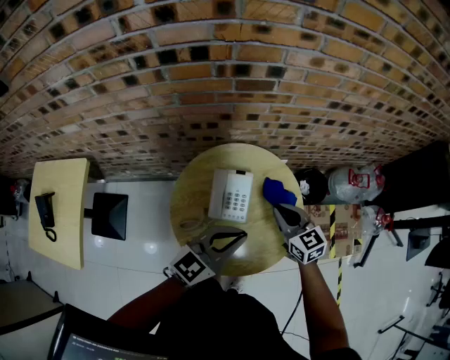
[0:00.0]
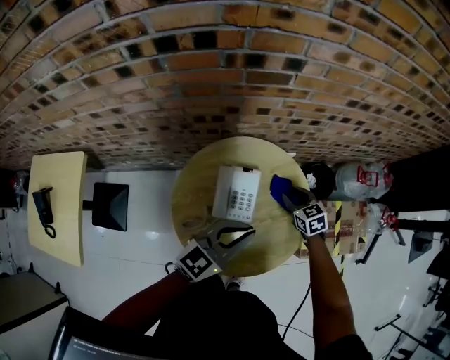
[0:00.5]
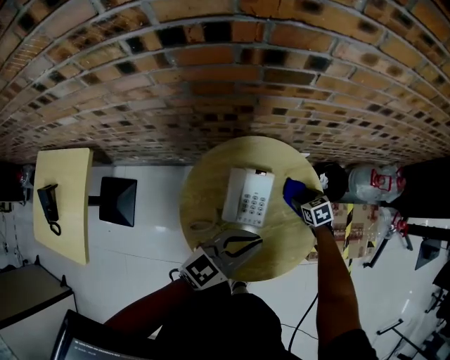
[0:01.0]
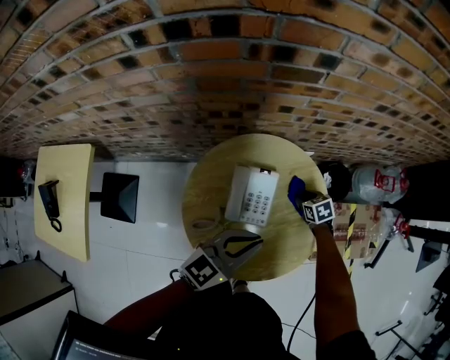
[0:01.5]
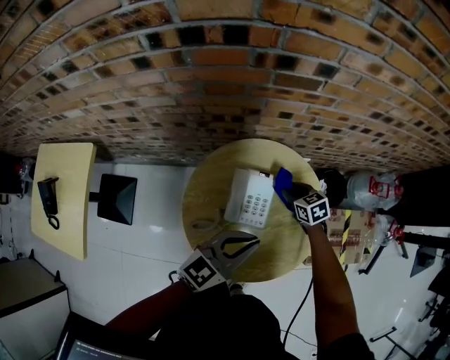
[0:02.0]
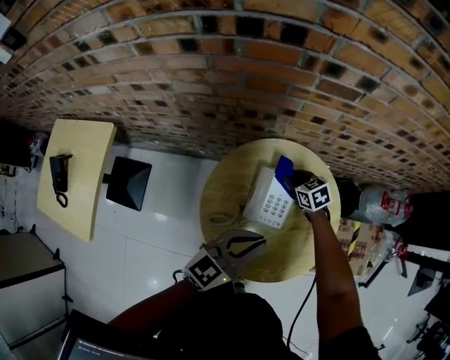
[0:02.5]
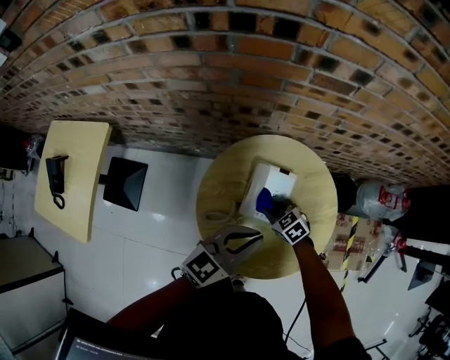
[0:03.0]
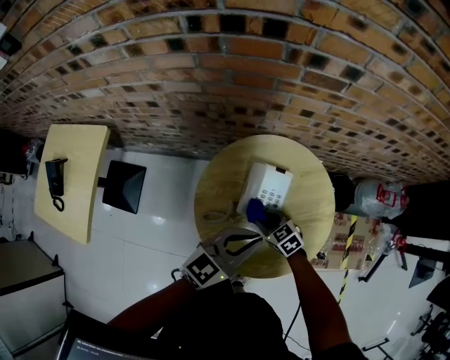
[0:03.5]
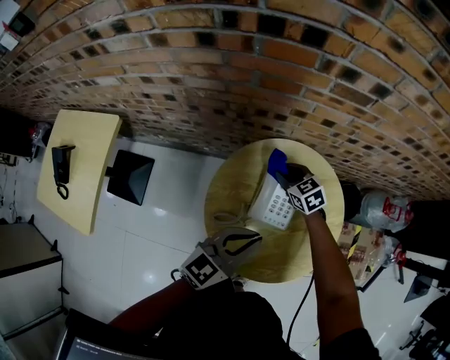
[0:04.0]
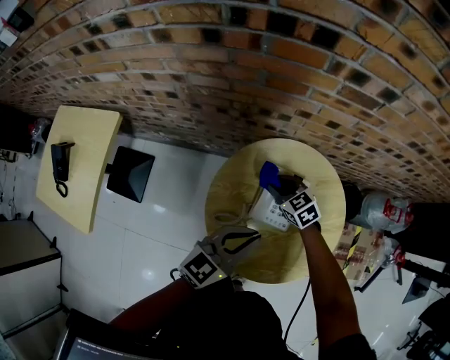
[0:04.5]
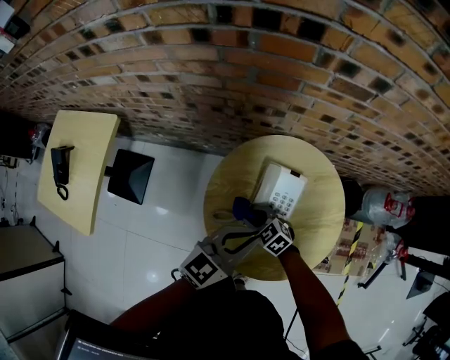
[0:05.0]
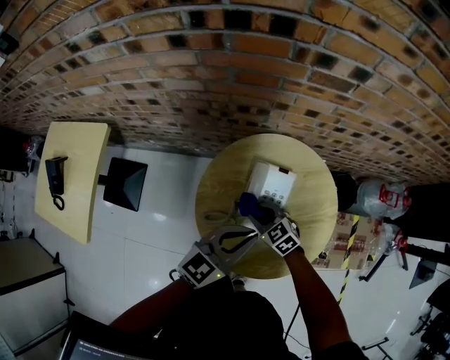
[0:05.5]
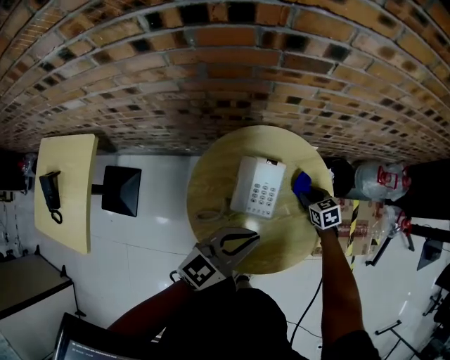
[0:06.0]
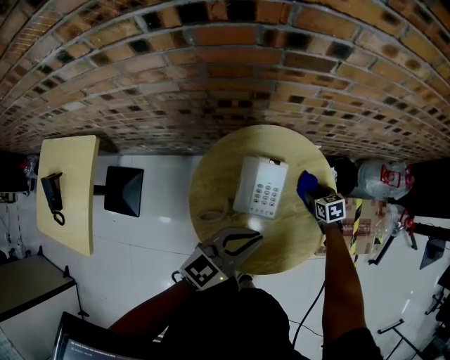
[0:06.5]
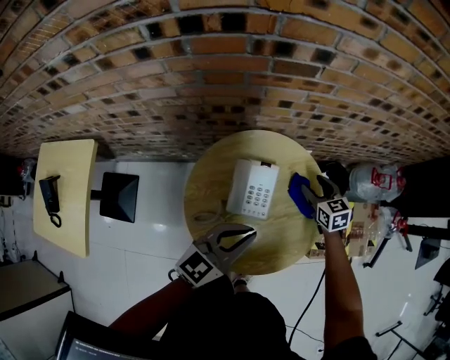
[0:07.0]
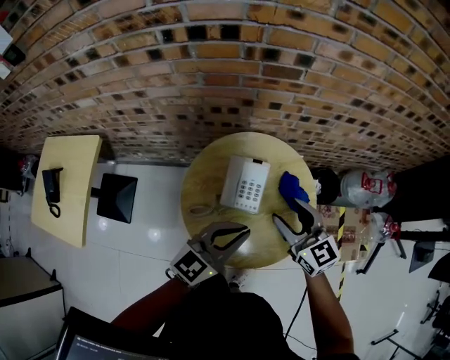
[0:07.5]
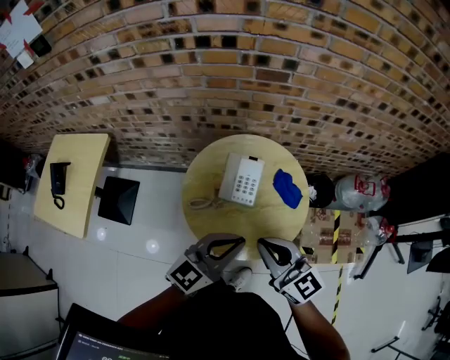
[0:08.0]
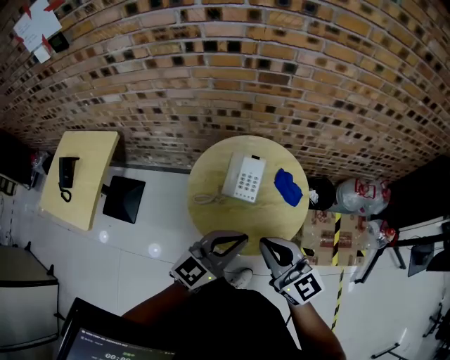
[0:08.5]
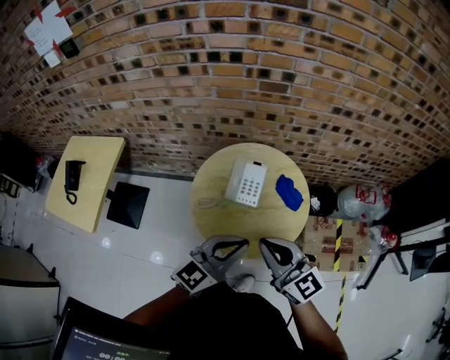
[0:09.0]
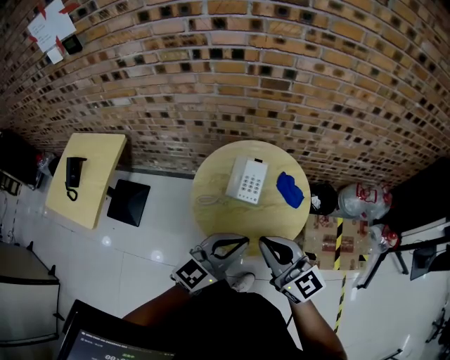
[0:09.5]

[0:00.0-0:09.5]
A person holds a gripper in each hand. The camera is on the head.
0:00.0 to 0:02.0: The right gripper shifts about 20 cm downward and forward, swivels about 20 degrees, and opens its fingers. The left gripper travels downward by about 5 cm.
0:02.0 to 0:04.0: The left gripper is displaced to the left by about 10 cm, while the right gripper swings forward and backward, approximately 20 cm each way, with 2 reversals.
0:04.0 to 0:05.5: The right gripper heads backward, covering about 15 cm.
0:05.5 to 0:07.5: The right gripper is displaced upward and to the right by roughly 25 cm, changes its angle by roughly 40 degrees, and opens its fingers, while the left gripper is displaced upward and to the right by about 10 cm.
0:07.5 to 0:09.5: Both grippers move backward and upward, roughly 20 cm. The right gripper closes its fingers.

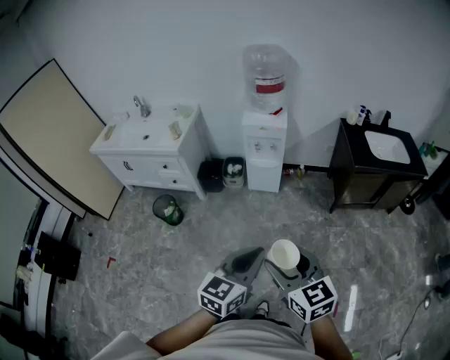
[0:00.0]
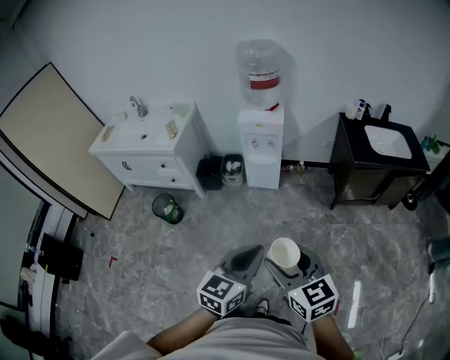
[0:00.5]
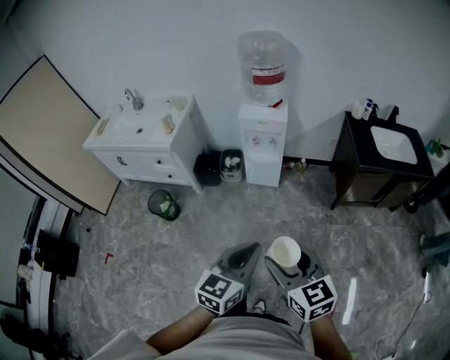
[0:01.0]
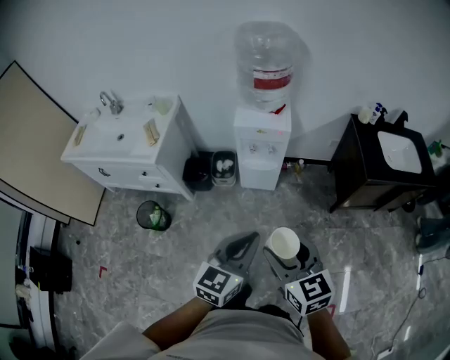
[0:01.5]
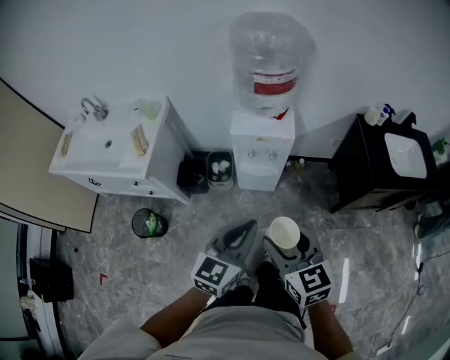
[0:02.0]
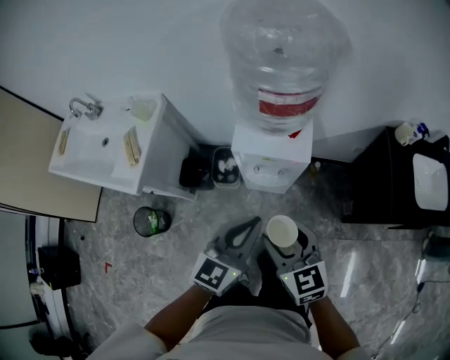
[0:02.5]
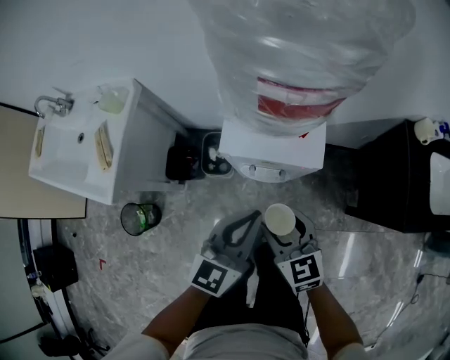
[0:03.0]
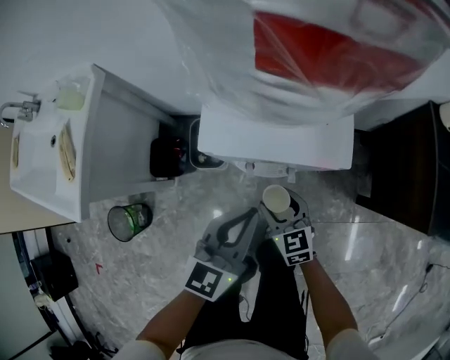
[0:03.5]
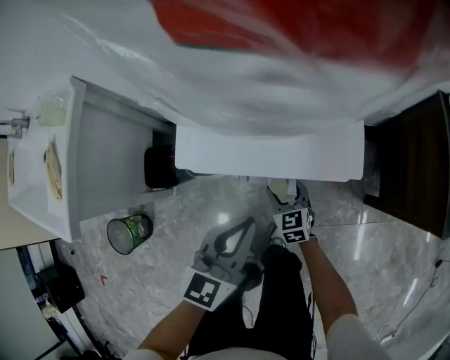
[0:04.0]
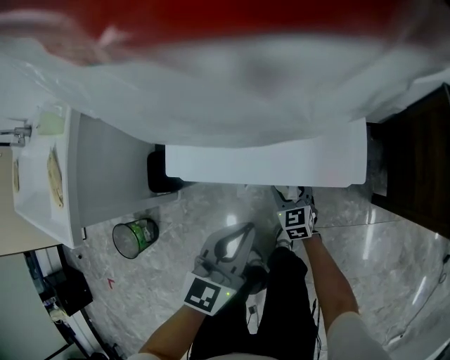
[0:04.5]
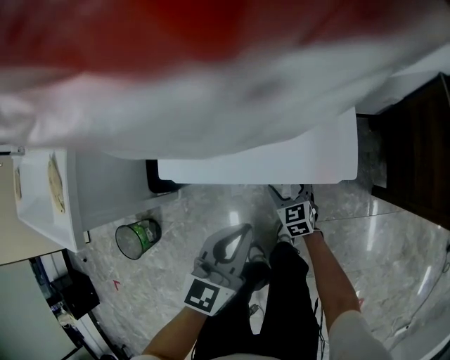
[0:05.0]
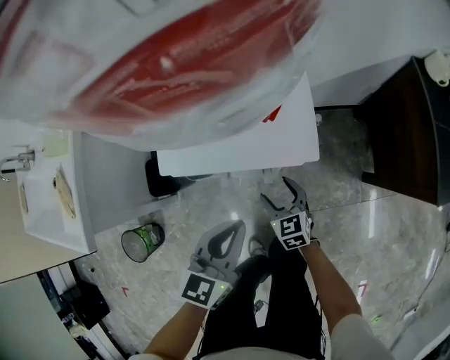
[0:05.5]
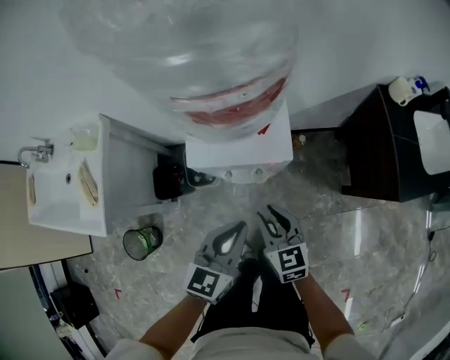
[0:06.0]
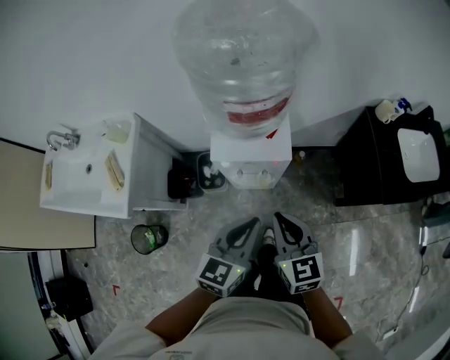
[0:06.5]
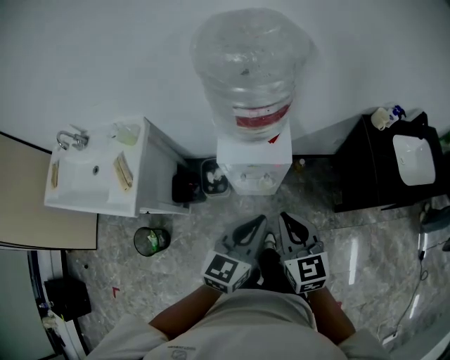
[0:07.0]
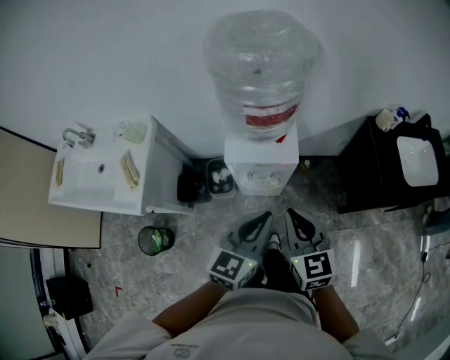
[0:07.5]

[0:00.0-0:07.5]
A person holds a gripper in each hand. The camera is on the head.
0:00.0 to 0:02.0: The pair of grippers is taken forward, about 40 cm.
0:02.0 to 0:04.0: The right gripper goes about 70 cm downward and forward, while the left gripper is displaced downward and forward by roughly 50 cm.
0:04.0 to 0:05.5: The right gripper goes about 5 cm upward.
0:05.5 to 0:07.5: The left gripper travels upward by roughly 30 cm, while the right gripper moves upward, about 50 cm, and closes.

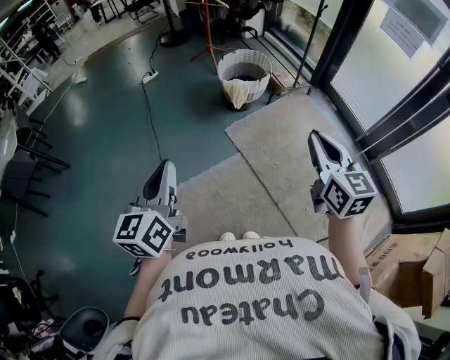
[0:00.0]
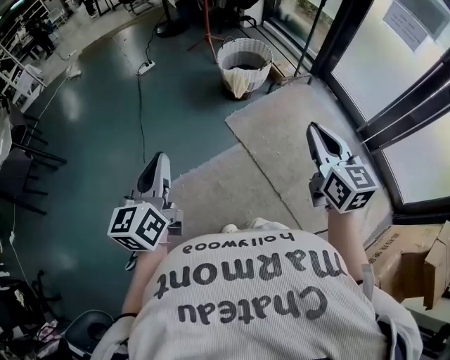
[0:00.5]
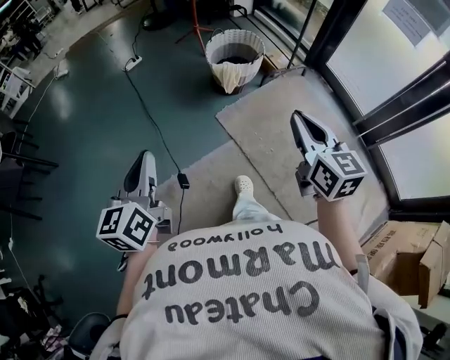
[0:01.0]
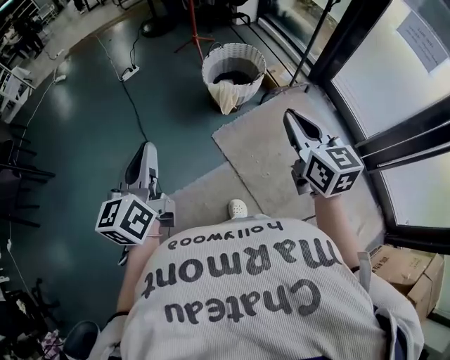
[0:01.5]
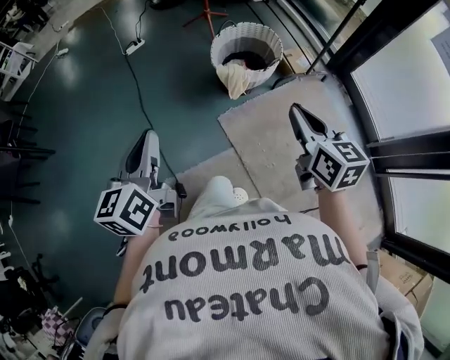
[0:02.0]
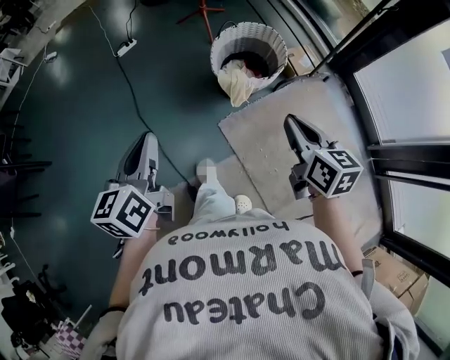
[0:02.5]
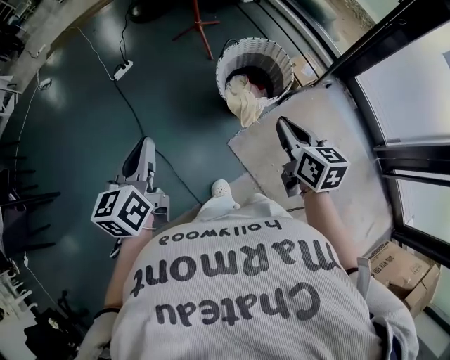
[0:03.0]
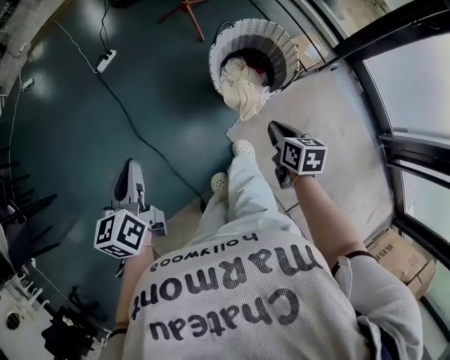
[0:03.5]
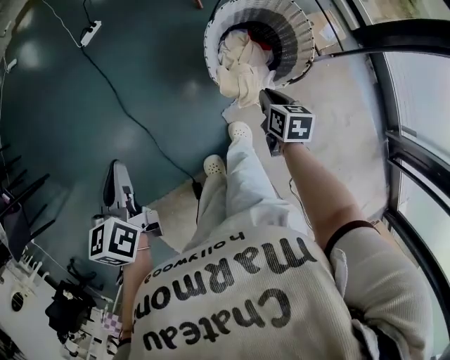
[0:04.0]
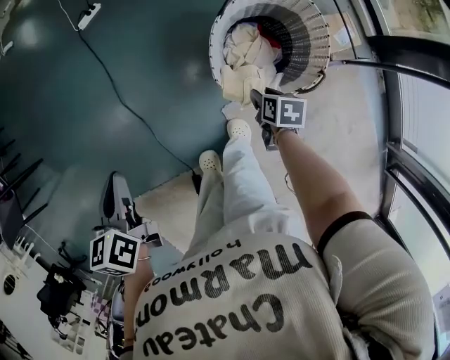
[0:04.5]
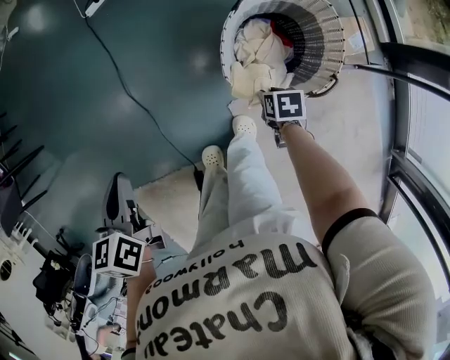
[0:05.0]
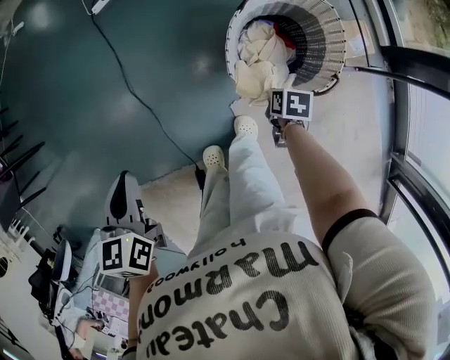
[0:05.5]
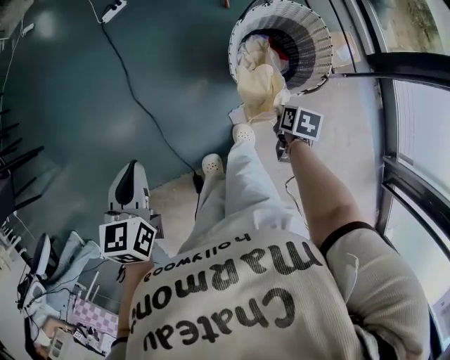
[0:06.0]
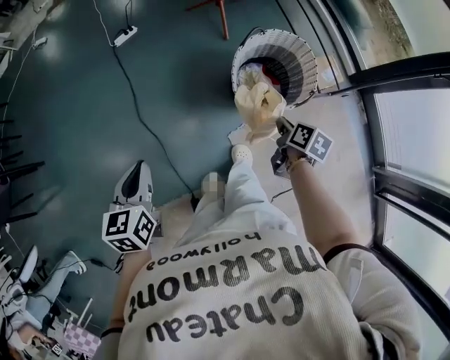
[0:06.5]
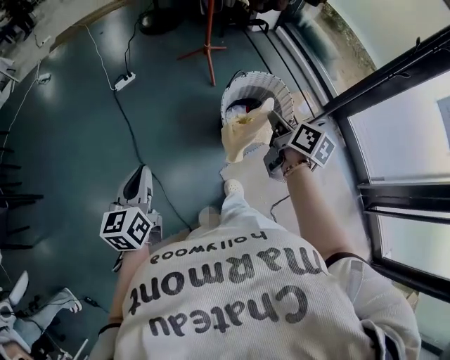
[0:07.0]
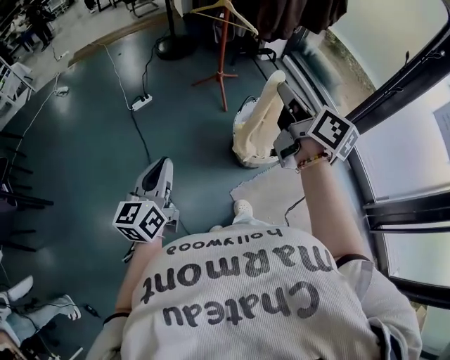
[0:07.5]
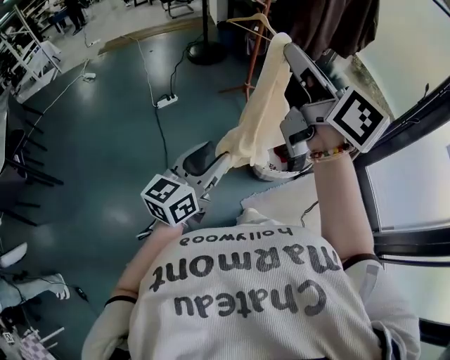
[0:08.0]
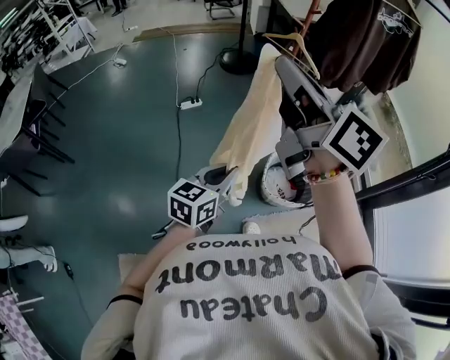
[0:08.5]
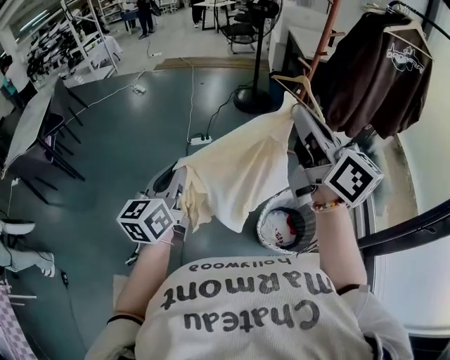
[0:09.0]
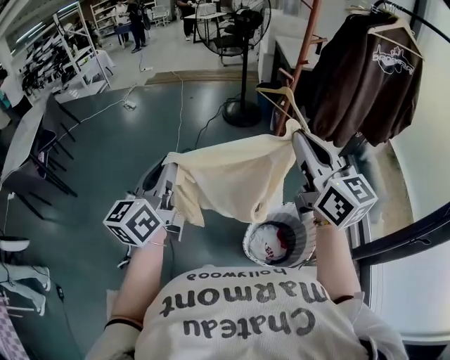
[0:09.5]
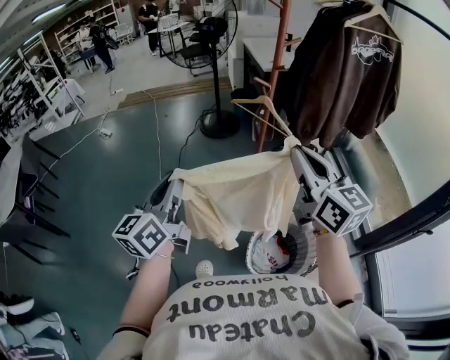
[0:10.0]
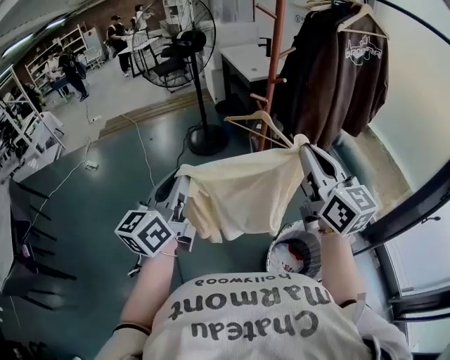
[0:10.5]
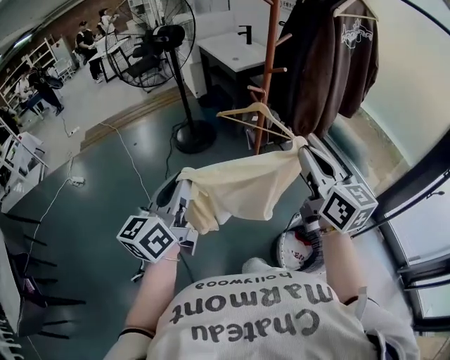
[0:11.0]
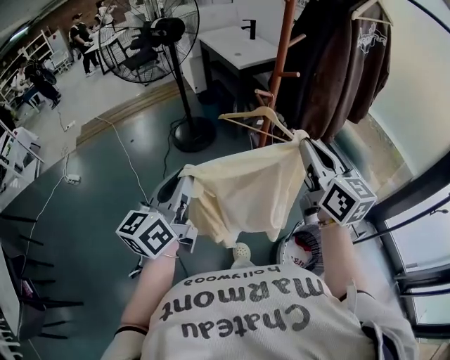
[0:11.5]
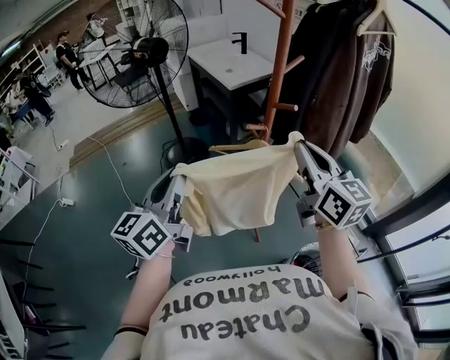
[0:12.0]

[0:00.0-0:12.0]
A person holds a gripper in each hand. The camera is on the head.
0:00.0 to 0:02.0: Both grippers travel together forward, approximately 30 cm.
0:02.0 to 0:04.0: The left gripper heads forward and downward, covering roughly 40 cm, and changes its angle by roughly 30 degrees; the right gripper shifts roughly 50 cm downward and forward, and angles its fingers downward, by some 30 degrees.
0:04.0 to 0:06.0: The right gripper goes downward and returns, approximately 10 cm each way, and opens and closes again, while the left gripper moves backward, approximately 5 cm.
0:06.0 to 0:08.0: The right gripper goes about 70 cm upward, and tips its fingers upward by about 80 degrees. The left gripper goes roughly 20 cm upward, tips its fingers upward by approximately 40 degrees, and opens its fingers.
0:08.0 to 0:10.0: The right gripper ends up some 30 cm from where it was, while the left gripper changes place by about 30 cm, swivels some 30 degrees, and closes its fingers.
0:10.0 to 0:12.0: Both grippers move forward, some 35 cm. The right gripper turns by about 20 degrees. The left gripper turns by roughly 20 degrees.
